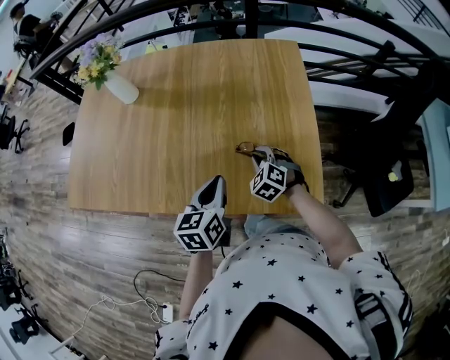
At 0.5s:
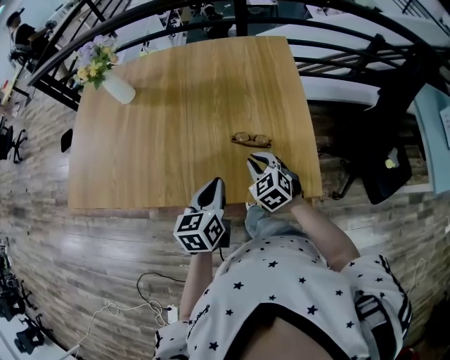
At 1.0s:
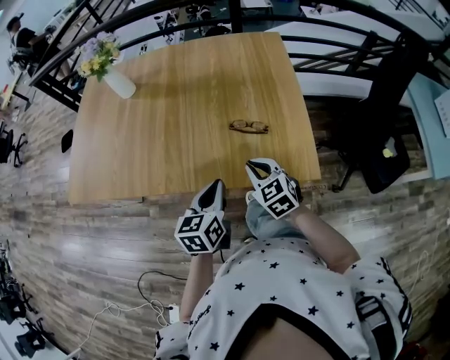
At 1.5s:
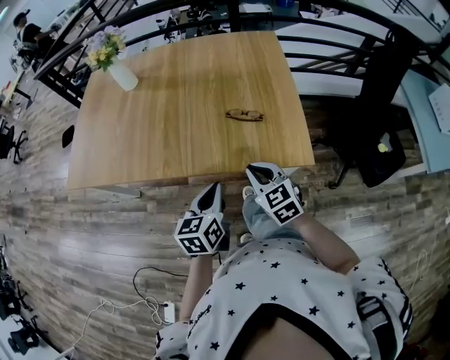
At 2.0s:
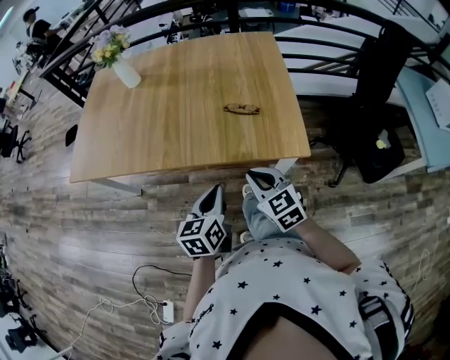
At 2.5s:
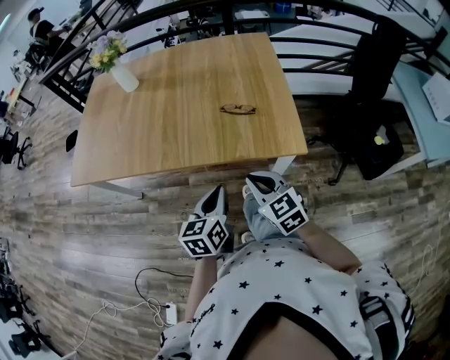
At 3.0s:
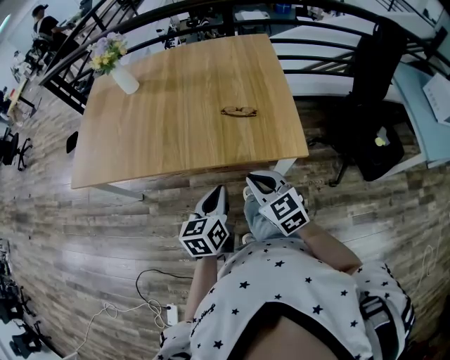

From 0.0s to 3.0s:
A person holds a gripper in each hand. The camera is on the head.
From 0.0s to 1.5s: The right gripper goes about 25 cm backward and upward, and swivels roughly 40 degrees. The left gripper heads backward, covering some 20 cm.
From 1.5s to 3.0s: The two grippers go about 5 cm backward.

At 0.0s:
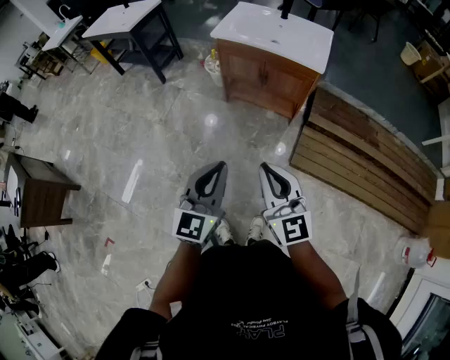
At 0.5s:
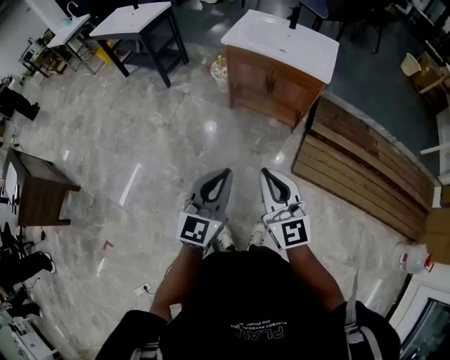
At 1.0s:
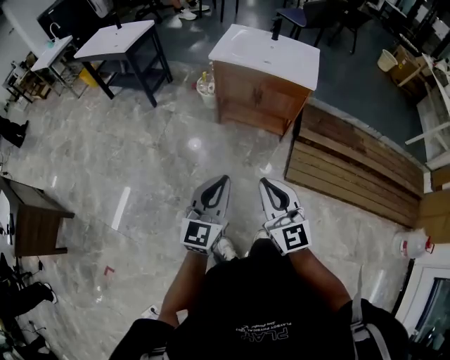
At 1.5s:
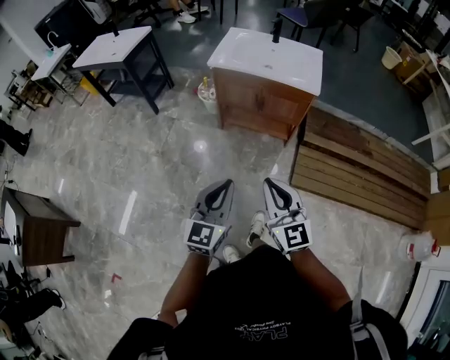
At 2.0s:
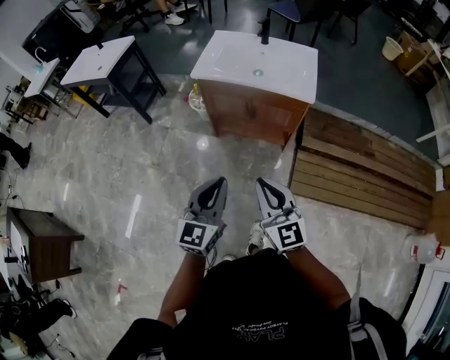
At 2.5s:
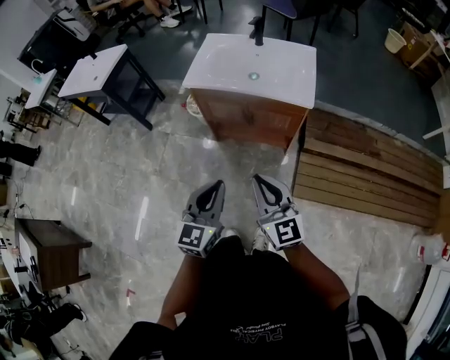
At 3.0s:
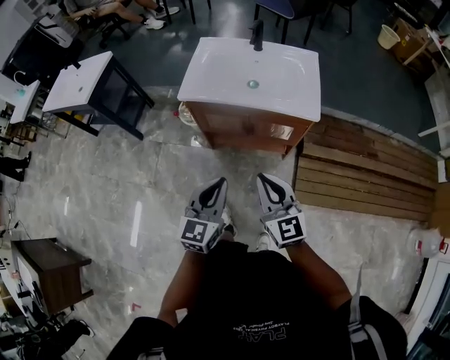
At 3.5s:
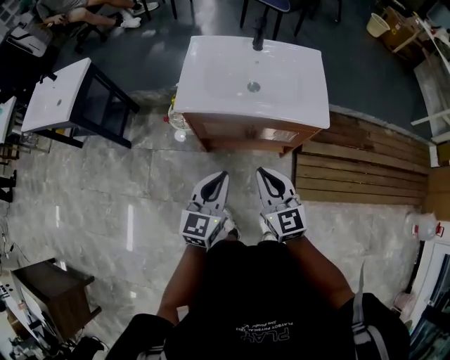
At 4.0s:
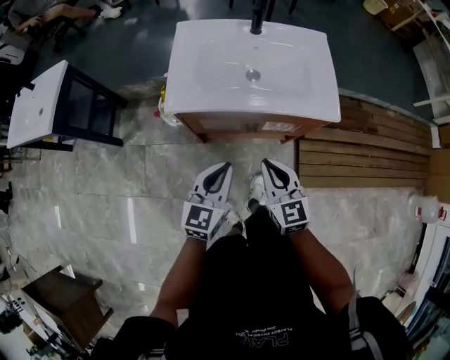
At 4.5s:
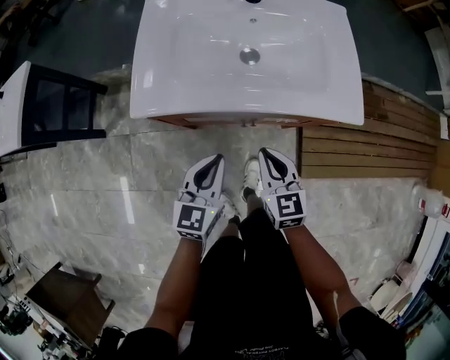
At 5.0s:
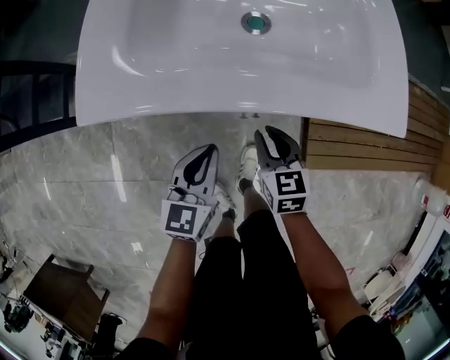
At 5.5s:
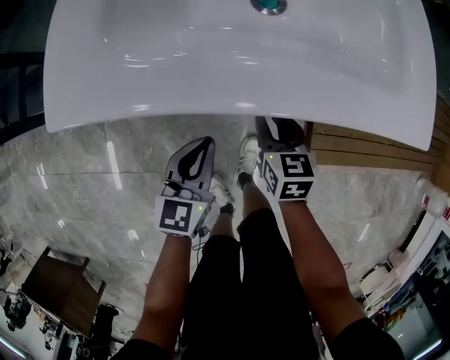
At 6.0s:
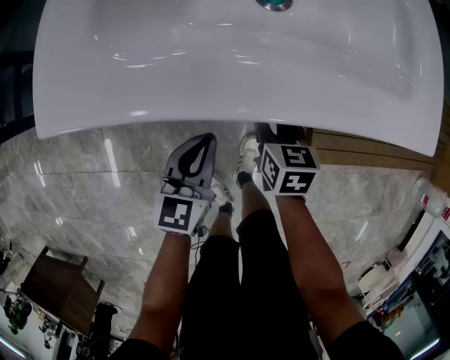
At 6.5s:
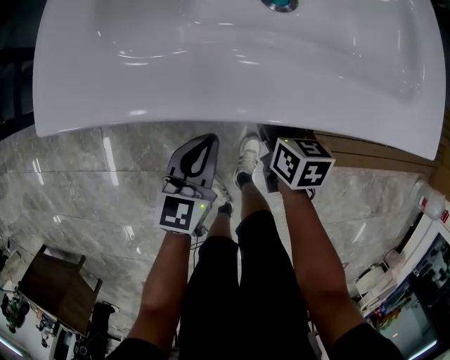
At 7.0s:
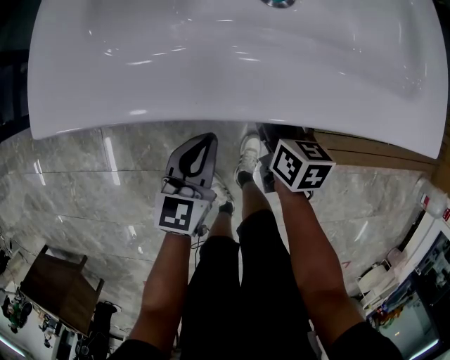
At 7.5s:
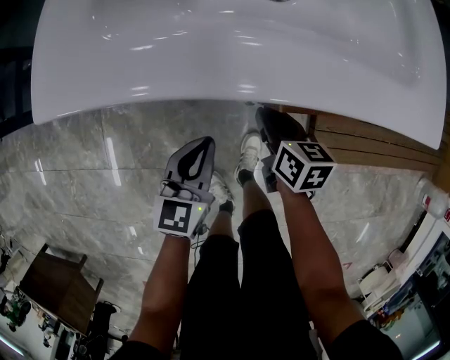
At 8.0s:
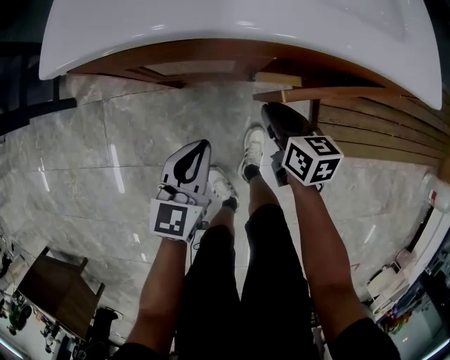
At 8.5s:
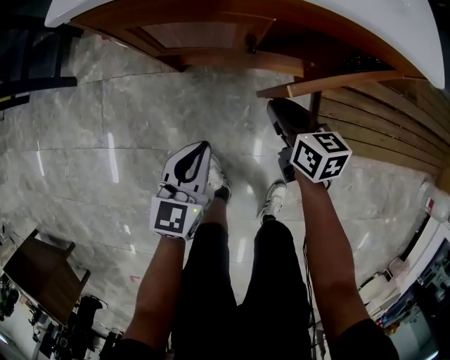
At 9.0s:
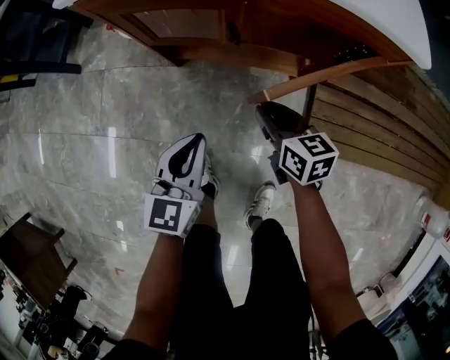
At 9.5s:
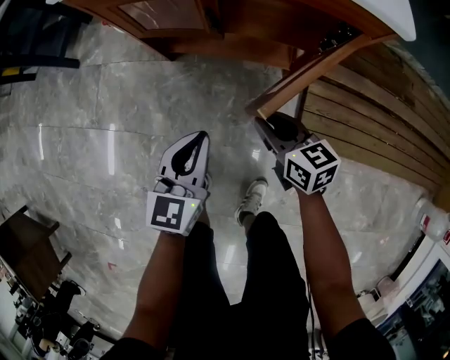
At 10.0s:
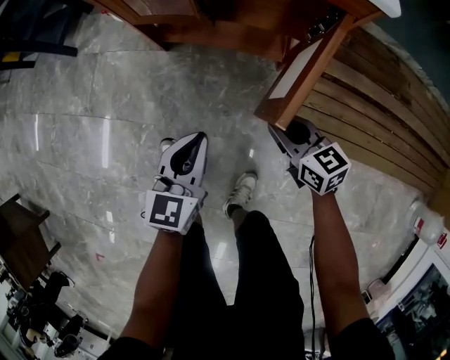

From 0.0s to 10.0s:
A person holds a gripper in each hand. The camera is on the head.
From 0.0s to 2.0s: The two grippers go roughly 15 cm forward.
From 2.0s to 4.0s: Both grippers travel together forward and downward, roughly 35 cm. The right gripper changes its angle by about 30 degrees; the left gripper rotates roughly 20 degrees.
From 4.0s to 6.0s: Both grippers travel together downward and forward, roughly 35 cm. The right gripper turns by some 40 degrees, and opens.
From 6.0s to 8.0s: Both grippers move backward, approximately 10 cm.
From 8.0s to 10.0s: Both grippers travel together backward and to the right, approximately 25 cm. The right gripper rotates roughly 30 degrees.

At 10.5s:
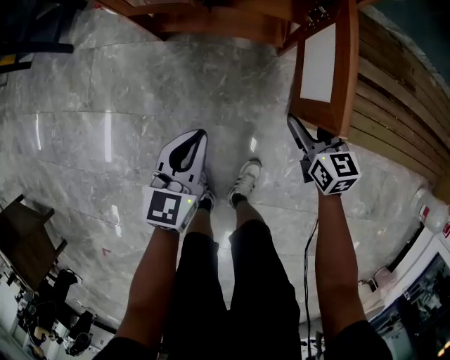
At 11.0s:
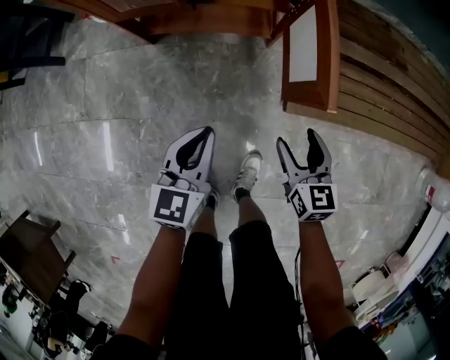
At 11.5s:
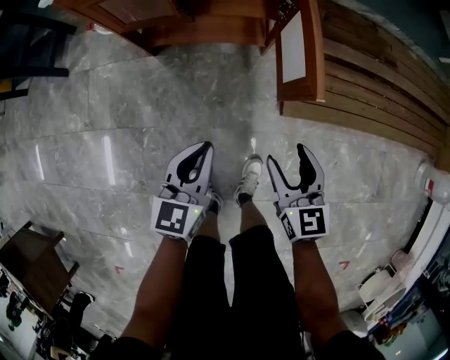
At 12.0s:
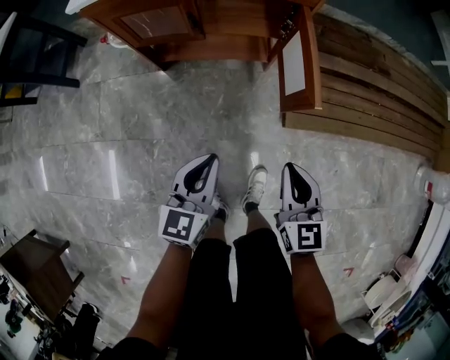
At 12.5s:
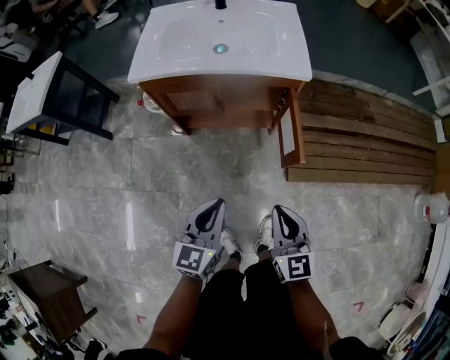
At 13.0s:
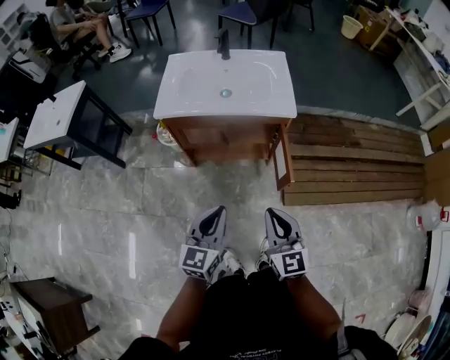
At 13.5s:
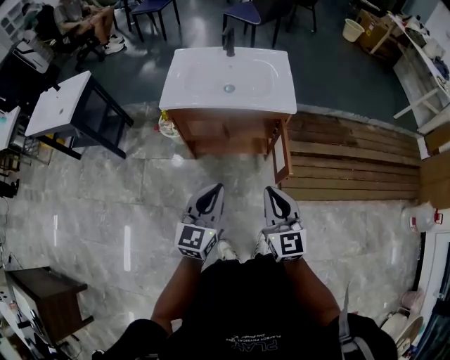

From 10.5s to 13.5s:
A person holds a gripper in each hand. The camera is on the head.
From 10.5s to 12.0s: The right gripper travels backward and upward by about 20 cm, changes its angle by roughly 20 degrees, and closes its fingers, while the left gripper heads upward and backward, covering some 10 cm.
From 12.0s to 13.5s: Both grippers travel together upward, approximately 30 cm.

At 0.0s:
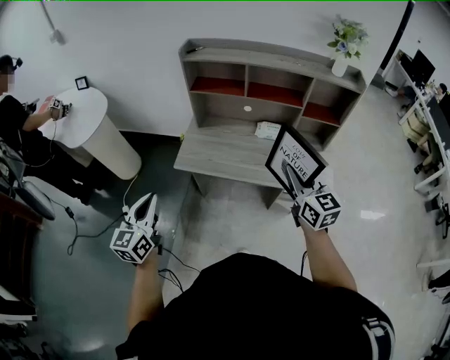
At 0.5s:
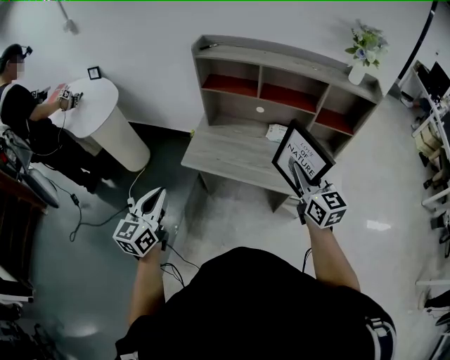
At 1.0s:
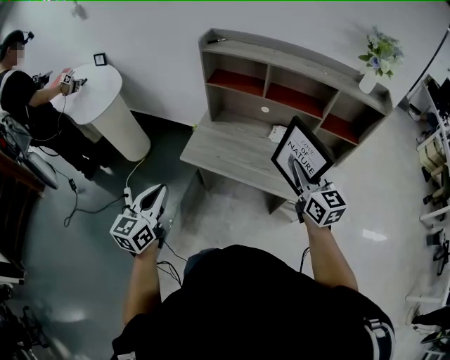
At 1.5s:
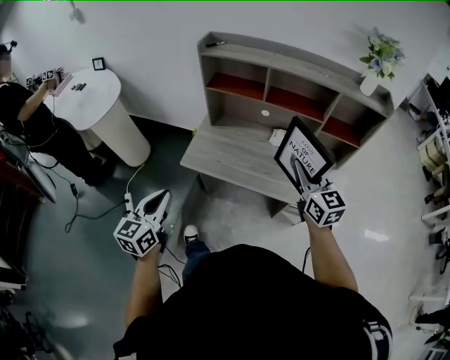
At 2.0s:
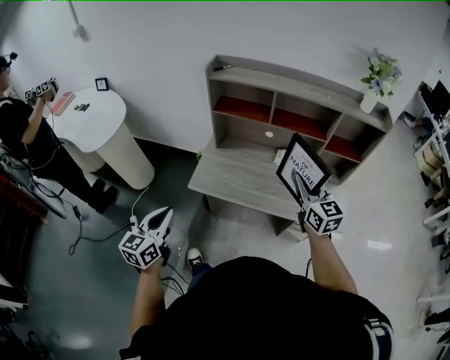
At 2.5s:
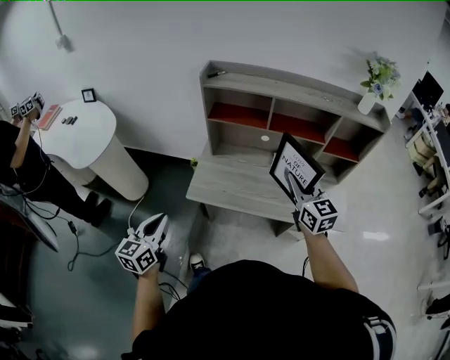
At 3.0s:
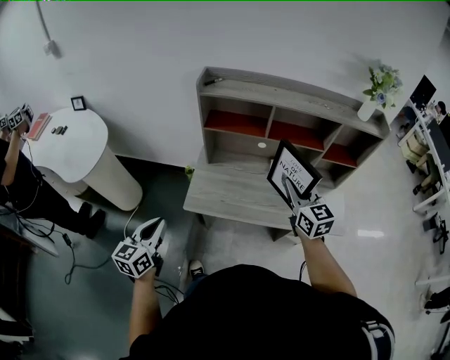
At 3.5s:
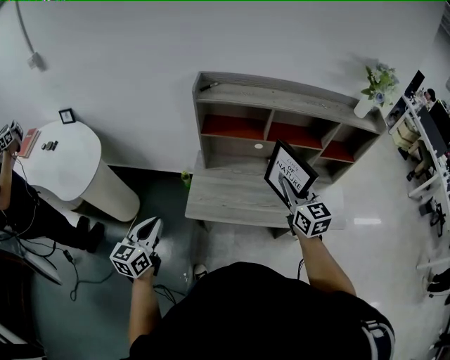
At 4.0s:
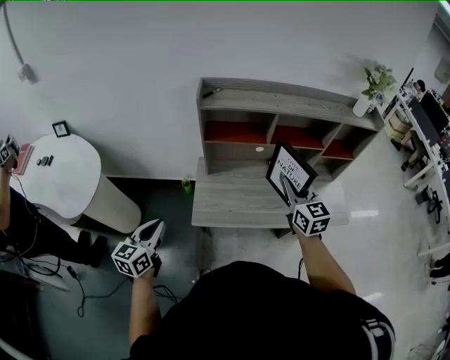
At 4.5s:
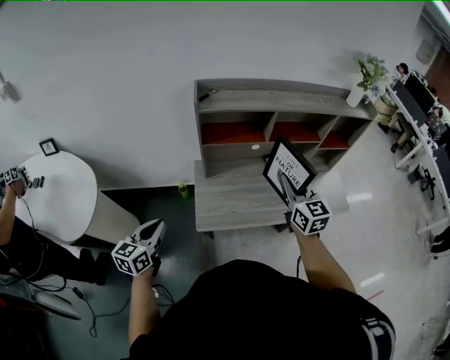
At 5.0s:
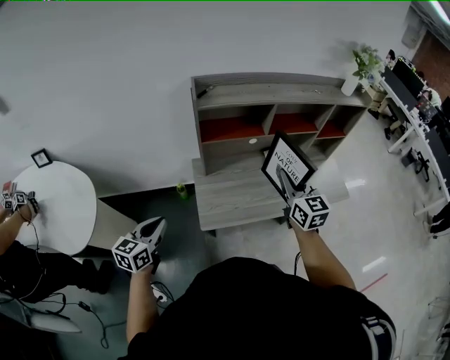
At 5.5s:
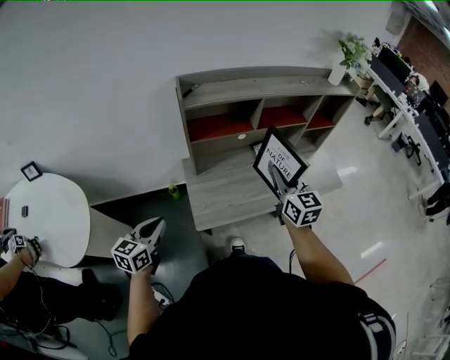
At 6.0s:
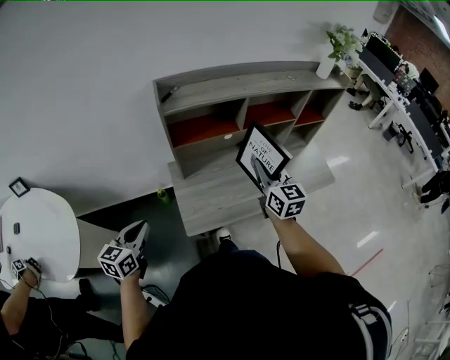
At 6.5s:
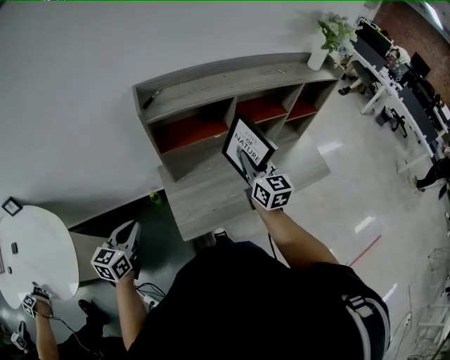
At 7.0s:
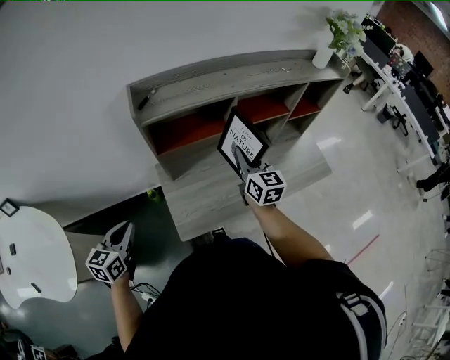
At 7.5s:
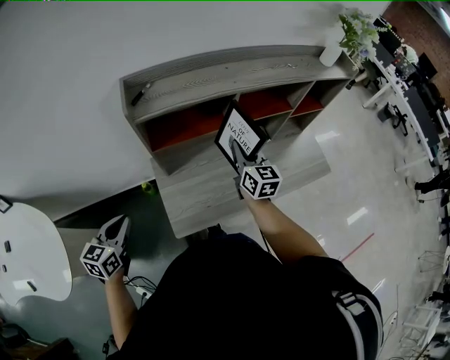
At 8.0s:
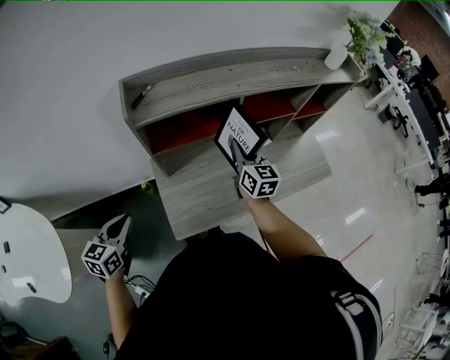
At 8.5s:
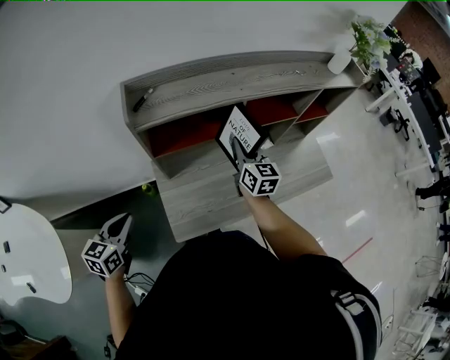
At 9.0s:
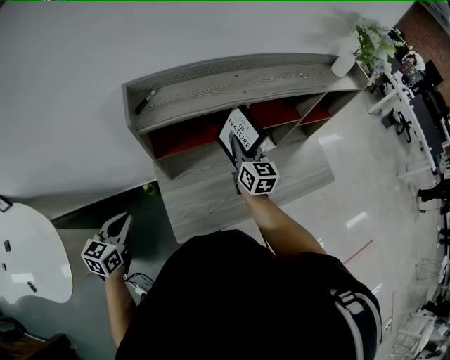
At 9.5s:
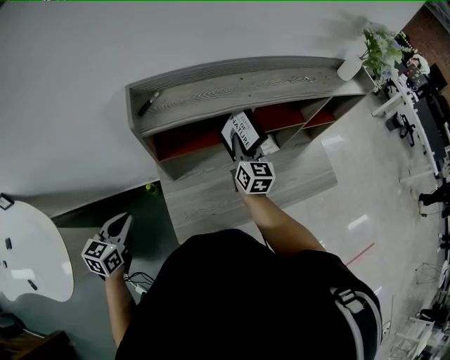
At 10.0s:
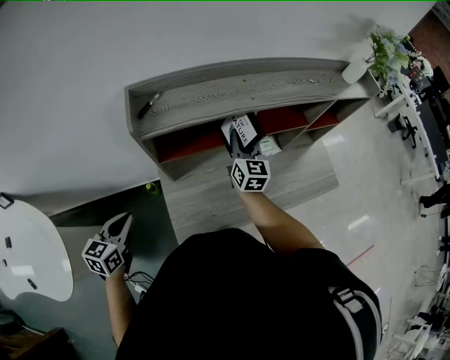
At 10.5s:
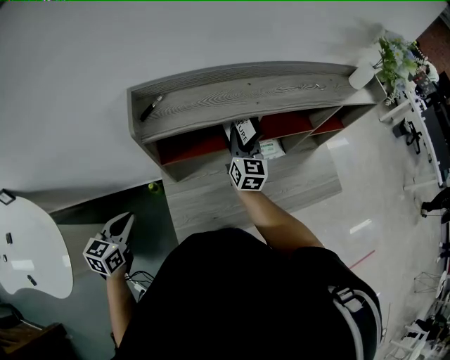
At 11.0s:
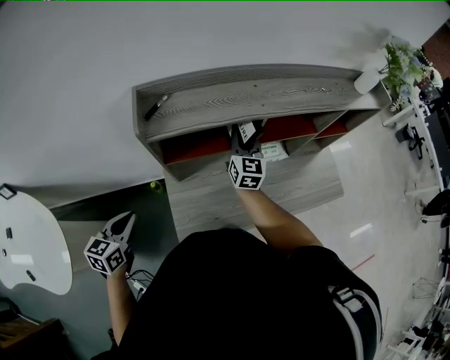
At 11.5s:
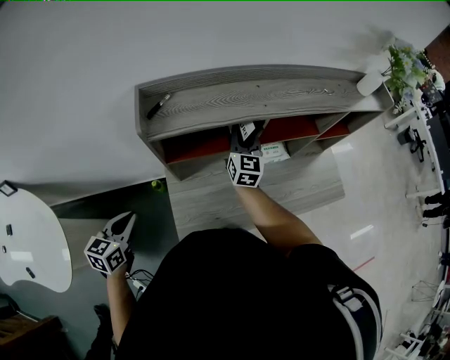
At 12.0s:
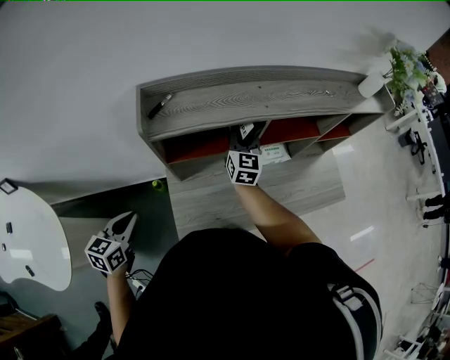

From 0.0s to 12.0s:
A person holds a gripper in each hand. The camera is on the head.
From 0.0s to 2.0s: The right gripper goes some 10 cm forward; the left gripper heads forward, covering roughly 5 cm.
From 2.0s to 4.0s: The left gripper travels forward and to the left by roughly 25 cm. Meanwhile the right gripper shifts approximately 15 cm to the left and forward.
From 4.0s to 6.0s: The right gripper travels to the left by roughly 5 cm, while the left gripper moves forward and to the left, approximately 15 cm.
From 6.0s to 8.0s: The left gripper goes some 10 cm forward; the right gripper shifts about 15 cm forward and downward.
From 8.0s to 10.0s: The right gripper goes some 10 cm forward.
From 10.0s to 12.0s: The right gripper shifts by some 5 cm.
